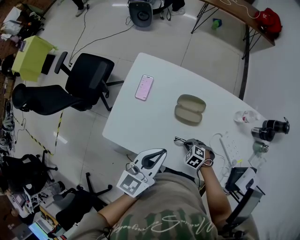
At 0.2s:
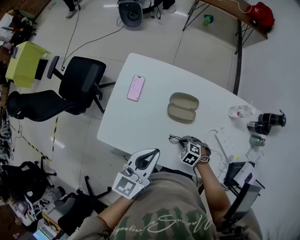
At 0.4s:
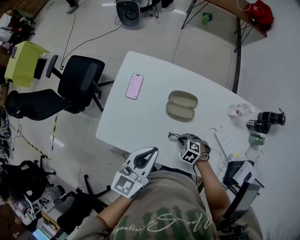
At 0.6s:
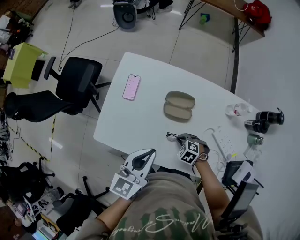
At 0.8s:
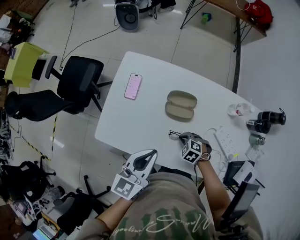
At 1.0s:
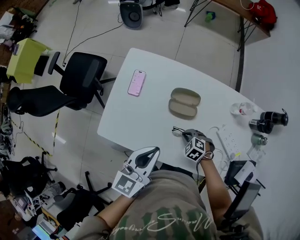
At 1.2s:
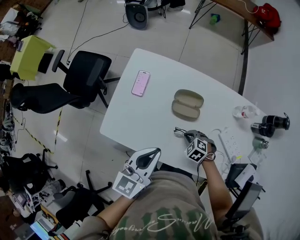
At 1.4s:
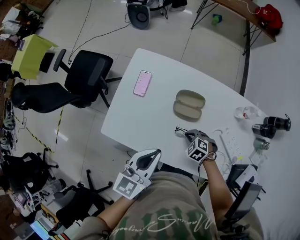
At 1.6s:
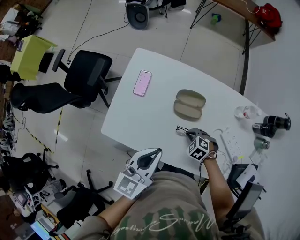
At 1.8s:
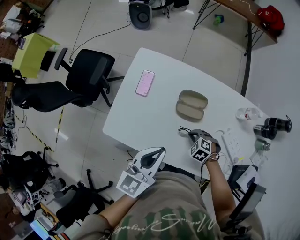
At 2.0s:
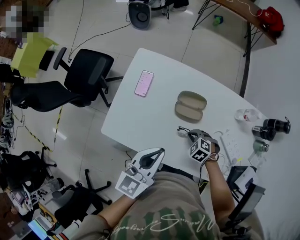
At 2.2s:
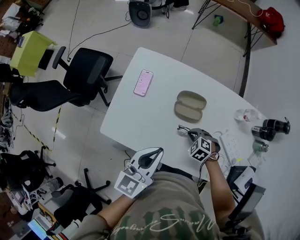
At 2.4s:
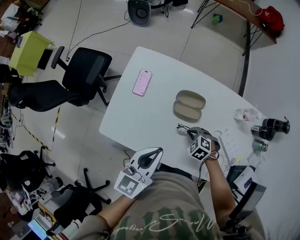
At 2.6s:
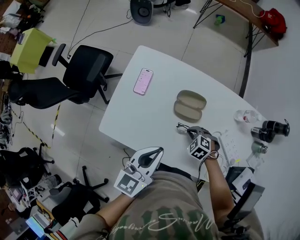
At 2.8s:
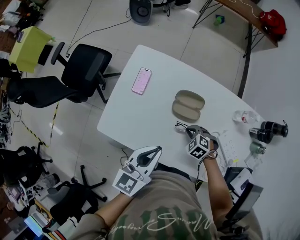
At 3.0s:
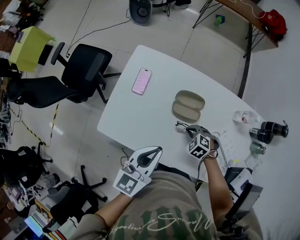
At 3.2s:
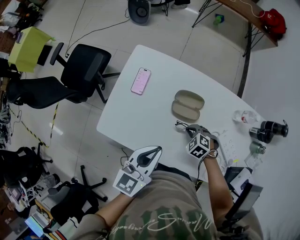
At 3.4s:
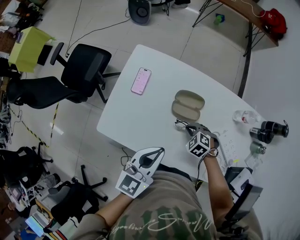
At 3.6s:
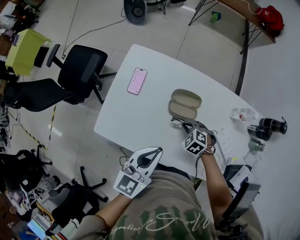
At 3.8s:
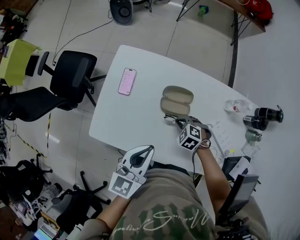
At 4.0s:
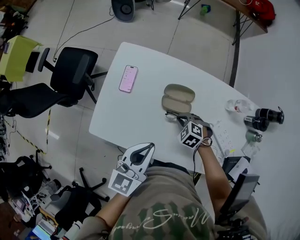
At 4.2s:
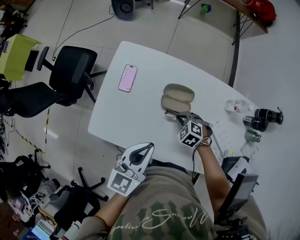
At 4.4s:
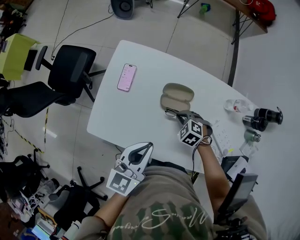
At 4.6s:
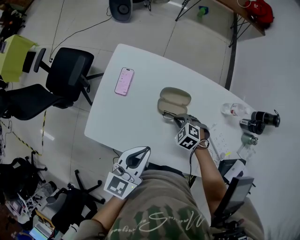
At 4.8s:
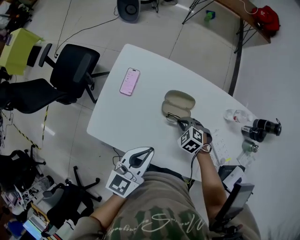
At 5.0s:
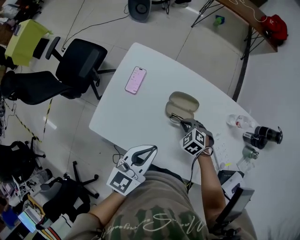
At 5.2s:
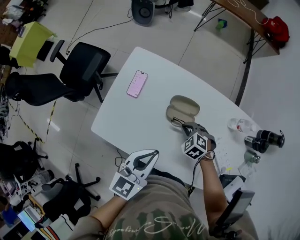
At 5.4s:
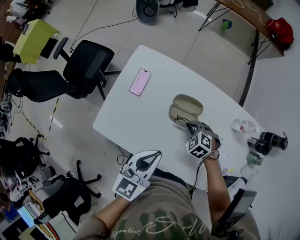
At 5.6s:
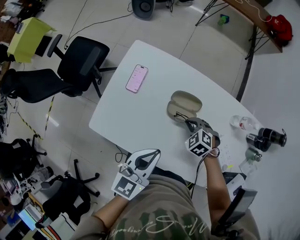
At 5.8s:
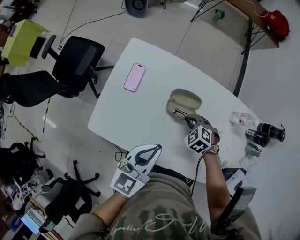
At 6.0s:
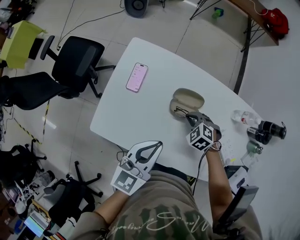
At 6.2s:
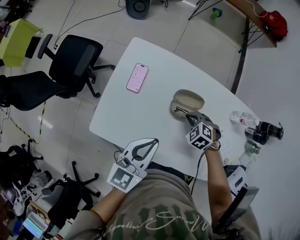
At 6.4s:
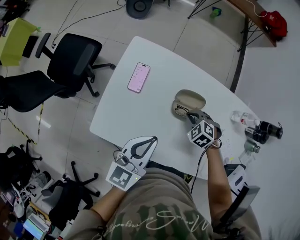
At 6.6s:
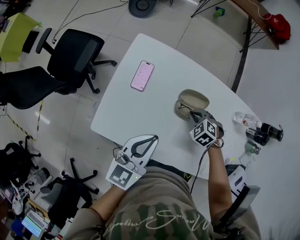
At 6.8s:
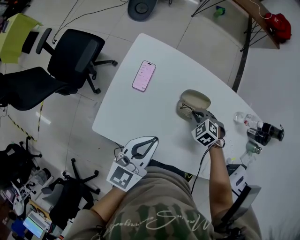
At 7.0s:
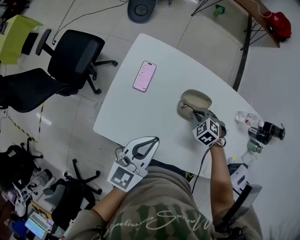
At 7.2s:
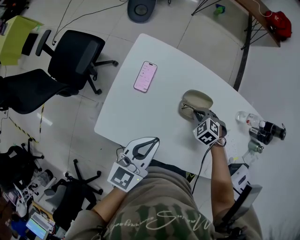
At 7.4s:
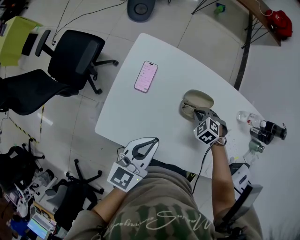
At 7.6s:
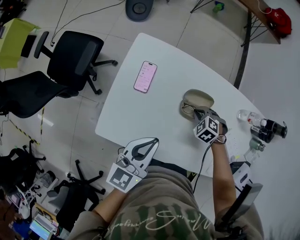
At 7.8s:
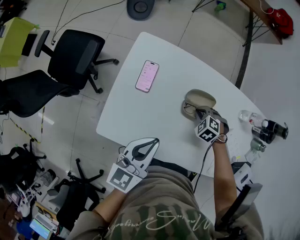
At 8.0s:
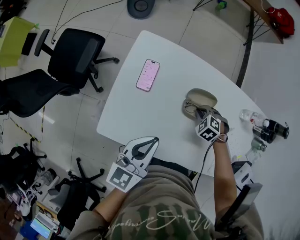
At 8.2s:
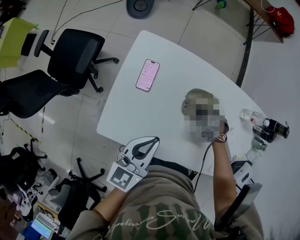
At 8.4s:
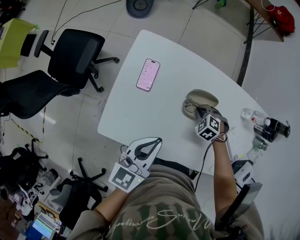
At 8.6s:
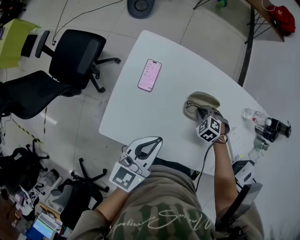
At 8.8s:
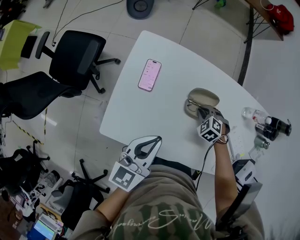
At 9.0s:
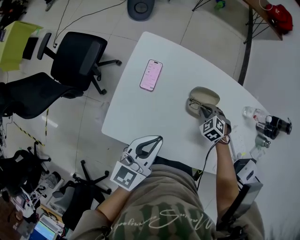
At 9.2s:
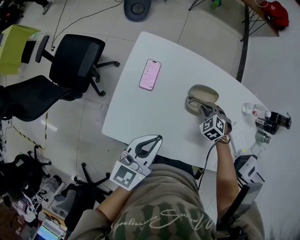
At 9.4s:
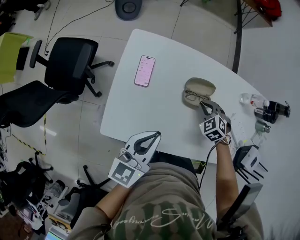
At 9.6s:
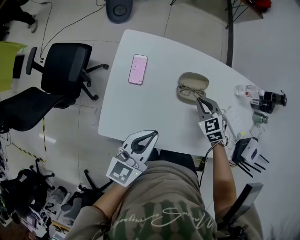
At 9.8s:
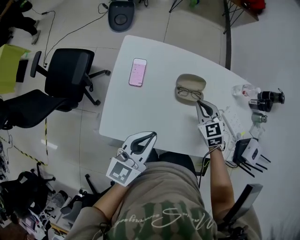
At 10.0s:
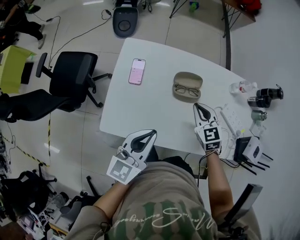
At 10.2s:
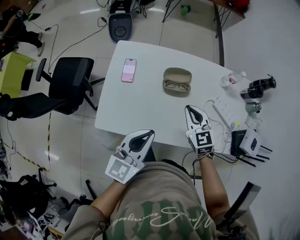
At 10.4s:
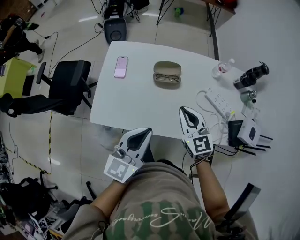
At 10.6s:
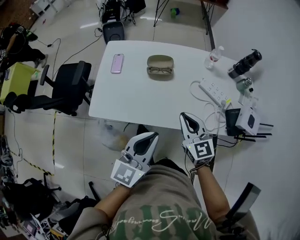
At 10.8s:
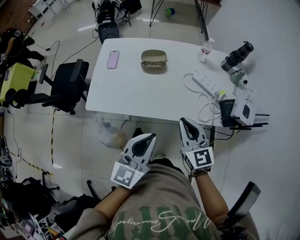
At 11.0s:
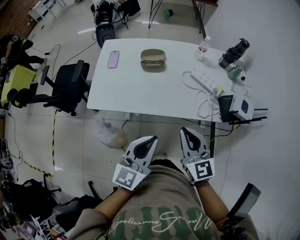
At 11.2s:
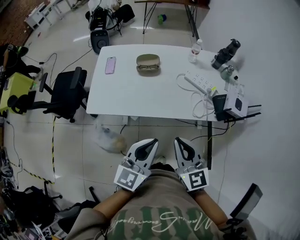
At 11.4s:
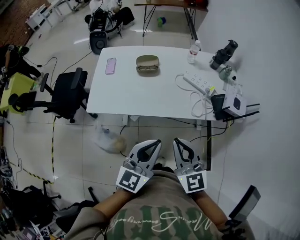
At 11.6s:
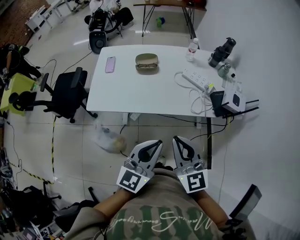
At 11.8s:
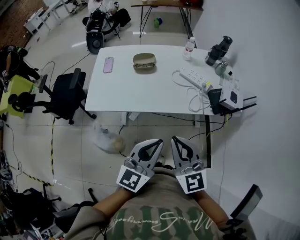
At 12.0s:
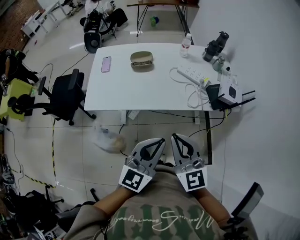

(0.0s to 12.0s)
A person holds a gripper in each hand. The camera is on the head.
0.0s - 1.6s: The grippers make only small movements.
1.6s - 3.0s: The grippers move only a little.
3.0s - 4.4s: The grippers move only a little.
4.4s - 6.0s: The grippers move only a little.
6.0s - 7.6s: The left gripper changes place by roughly 10 cm.
7.6s - 9.0s: There are only small adjustments of the grippers.
9.0s - 10.4s: The right gripper is displaced upward and backward by roughly 30 cm, and points its fingers roughly 50 degrees further upward; the left gripper moves backward, to the right and upward, some 20 cm.
10.4s - 12.0s: The left gripper shifts approximately 30 cm backward and to the right. The right gripper shifts roughly 30 cm backward.

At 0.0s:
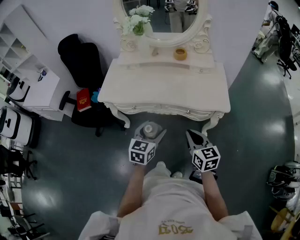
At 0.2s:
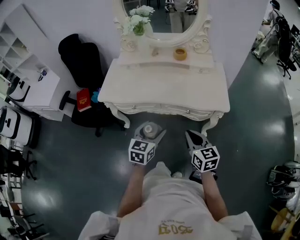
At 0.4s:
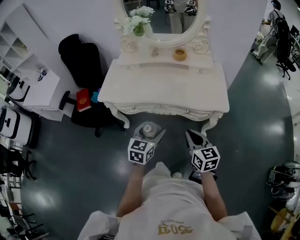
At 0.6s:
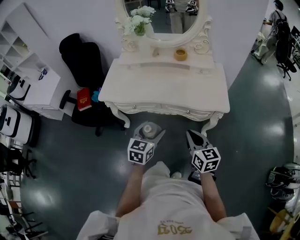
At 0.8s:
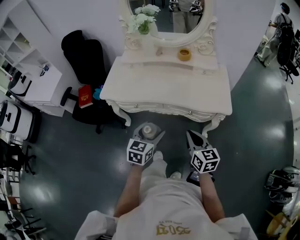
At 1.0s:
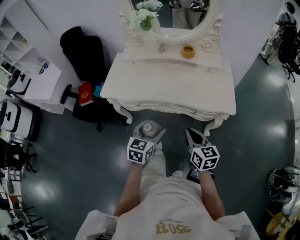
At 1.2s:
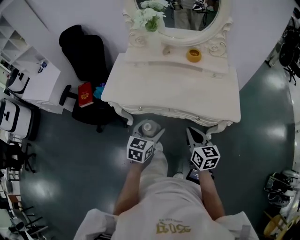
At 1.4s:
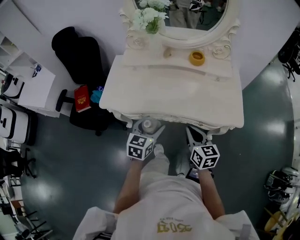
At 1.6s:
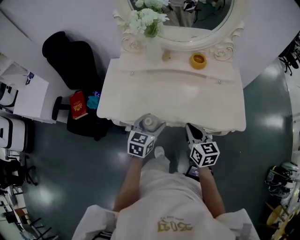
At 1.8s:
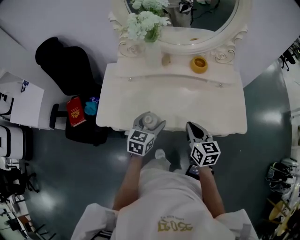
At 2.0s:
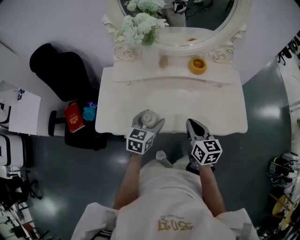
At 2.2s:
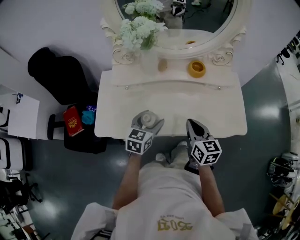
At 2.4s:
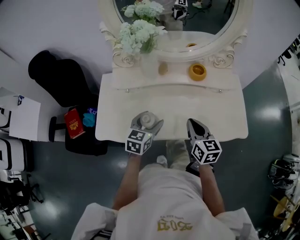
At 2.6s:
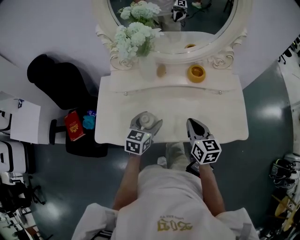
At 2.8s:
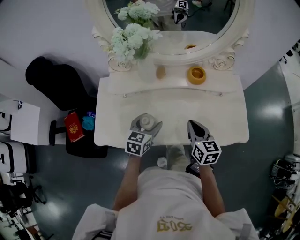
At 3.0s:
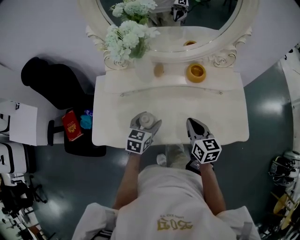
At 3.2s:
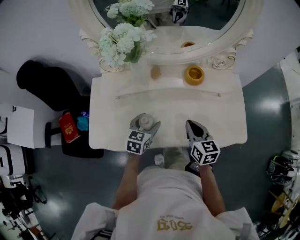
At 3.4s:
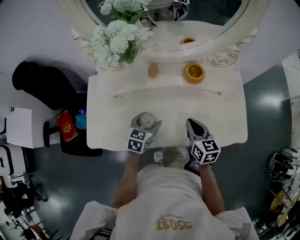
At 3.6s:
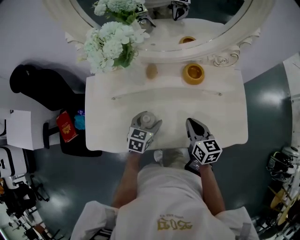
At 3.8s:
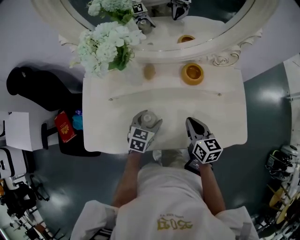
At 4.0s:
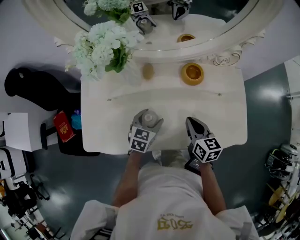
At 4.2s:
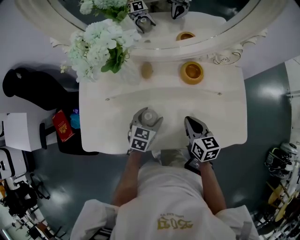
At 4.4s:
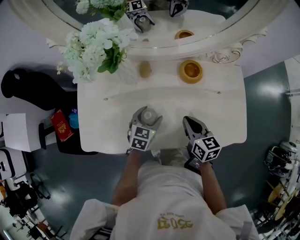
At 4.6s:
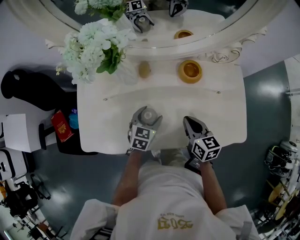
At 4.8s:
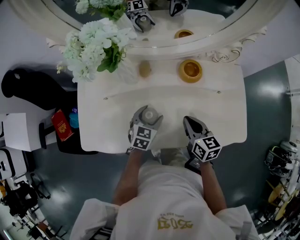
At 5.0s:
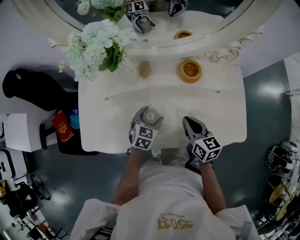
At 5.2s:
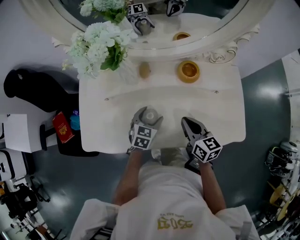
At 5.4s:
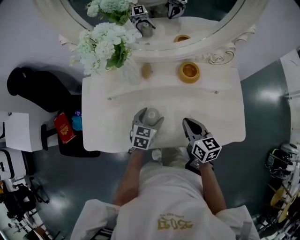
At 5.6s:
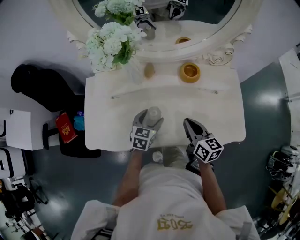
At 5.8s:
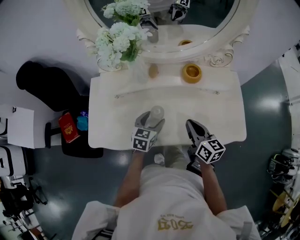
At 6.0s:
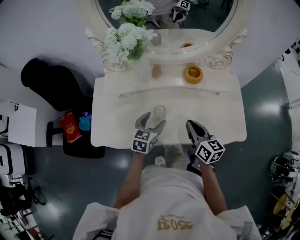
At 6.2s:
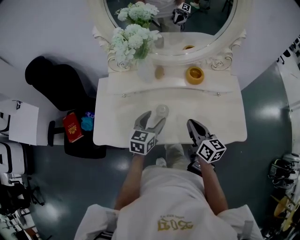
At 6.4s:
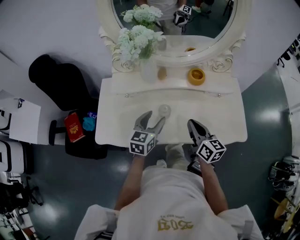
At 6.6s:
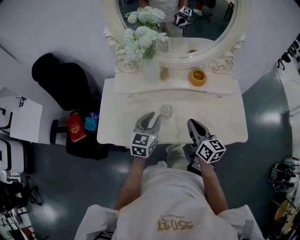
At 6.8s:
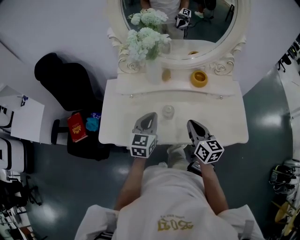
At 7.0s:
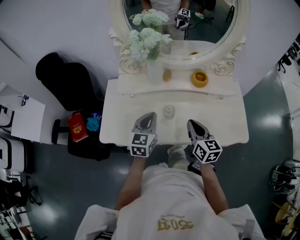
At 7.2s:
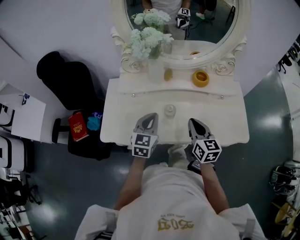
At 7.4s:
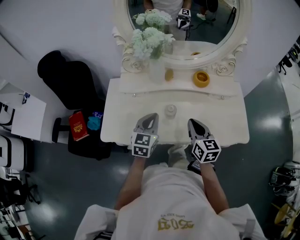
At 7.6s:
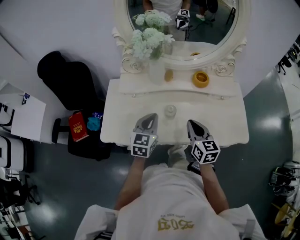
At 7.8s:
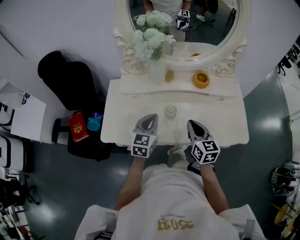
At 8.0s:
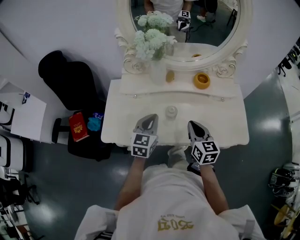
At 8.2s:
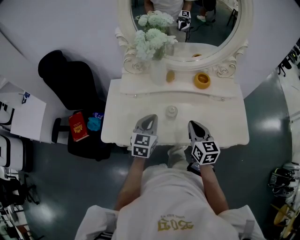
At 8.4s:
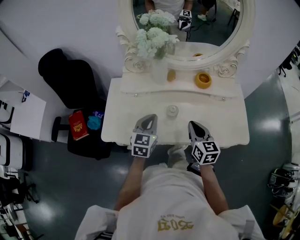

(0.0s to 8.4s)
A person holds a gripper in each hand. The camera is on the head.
0.0s - 1.4s: The grippers both shift forward and to the left by approximately 15 cm.
1.4s - 2.8s: Both grippers move forward, some 20 cm.
2.8s - 4.2s: The two grippers go approximately 10 cm downward and forward.
4.2s - 5.6s: The right gripper shifts by about 5 cm.
5.6s - 7.0s: The left gripper goes about 15 cm upward and to the left, rotates approximately 20 degrees, and closes, while the right gripper shifts about 5 cm upward.
7.0s - 8.4s: The grippers move only a little.

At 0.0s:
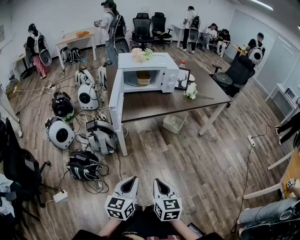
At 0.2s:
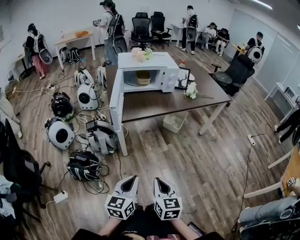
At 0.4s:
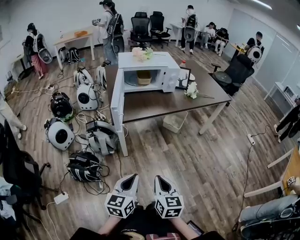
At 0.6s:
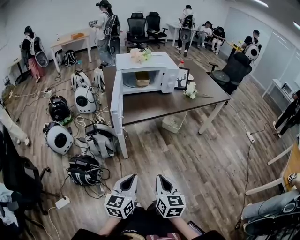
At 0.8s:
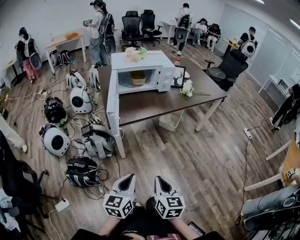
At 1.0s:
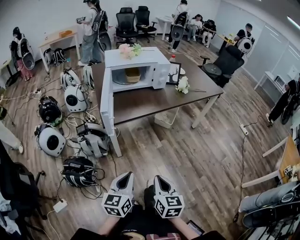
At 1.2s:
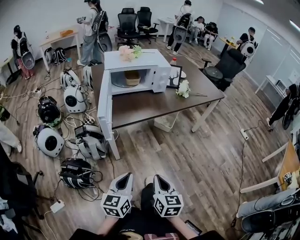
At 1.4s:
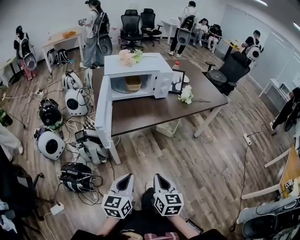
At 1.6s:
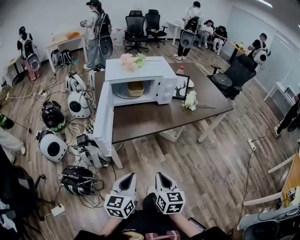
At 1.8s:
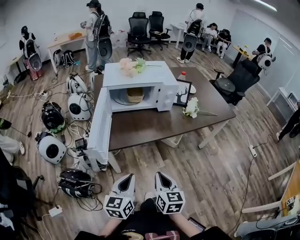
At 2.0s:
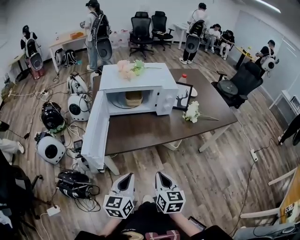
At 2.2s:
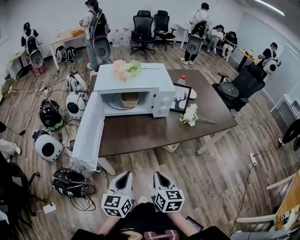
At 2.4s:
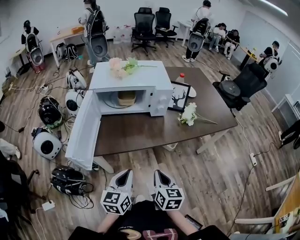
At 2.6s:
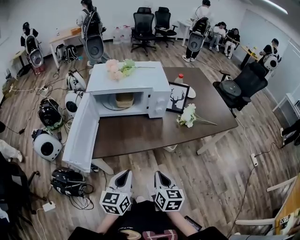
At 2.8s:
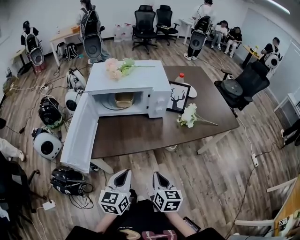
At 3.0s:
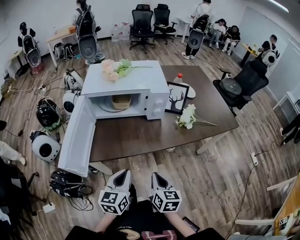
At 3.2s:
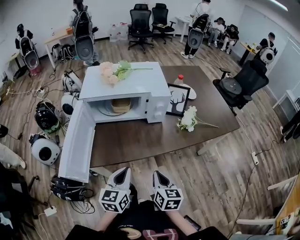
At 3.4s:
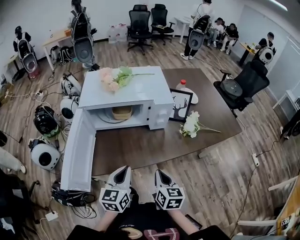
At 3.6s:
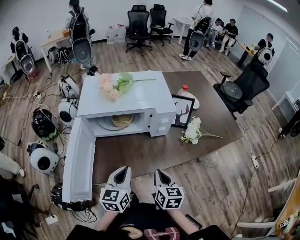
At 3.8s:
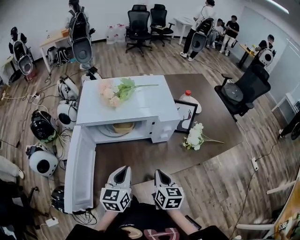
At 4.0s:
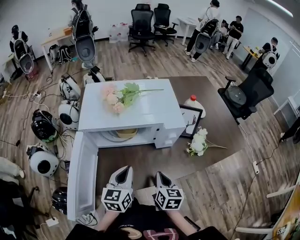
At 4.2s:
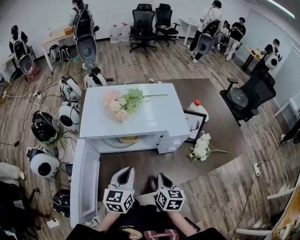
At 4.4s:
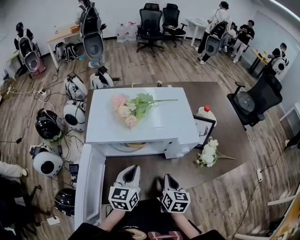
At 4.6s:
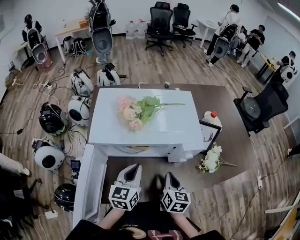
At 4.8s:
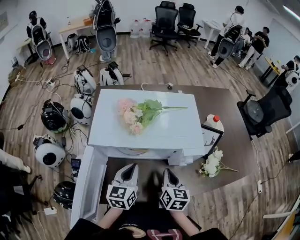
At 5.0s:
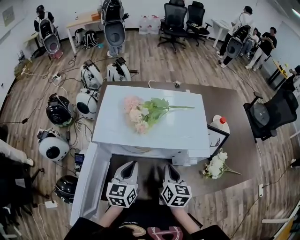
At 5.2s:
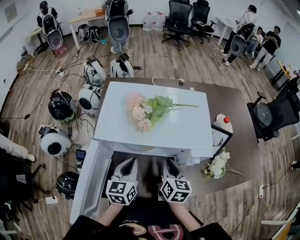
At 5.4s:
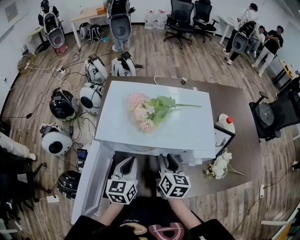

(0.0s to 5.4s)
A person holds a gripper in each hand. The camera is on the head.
0.0s - 1.4s: Both grippers travel together forward, about 15 cm.
1.4s - 2.8s: The grippers both shift forward and to the right by approximately 25 cm.
2.8s - 4.0s: Both grippers travel together forward, about 20 cm.
4.0s - 5.4s: Both grippers move forward and to the left, some 15 cm. The right gripper opens its fingers.
